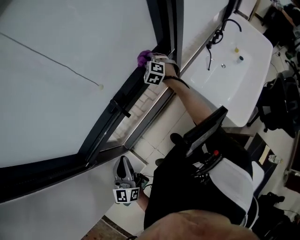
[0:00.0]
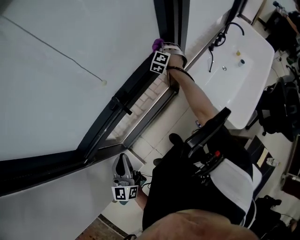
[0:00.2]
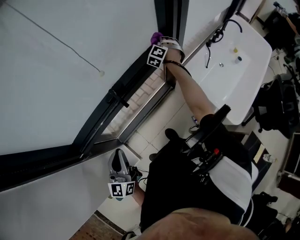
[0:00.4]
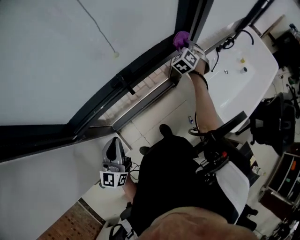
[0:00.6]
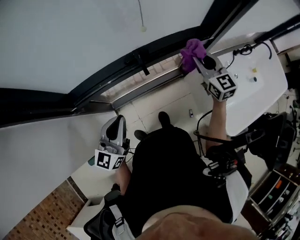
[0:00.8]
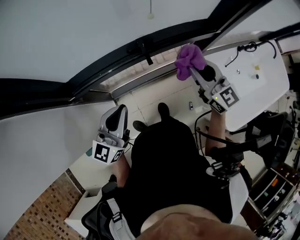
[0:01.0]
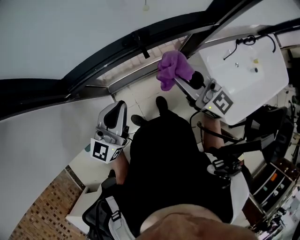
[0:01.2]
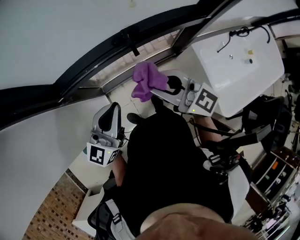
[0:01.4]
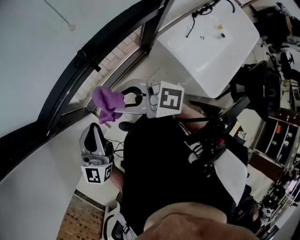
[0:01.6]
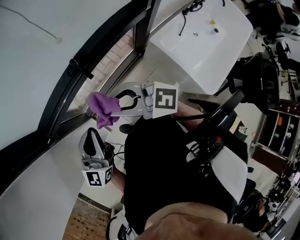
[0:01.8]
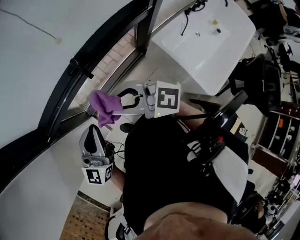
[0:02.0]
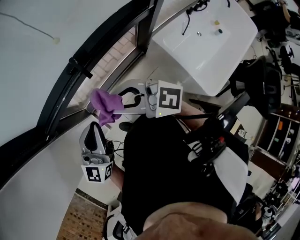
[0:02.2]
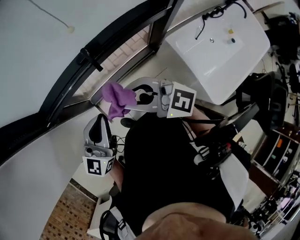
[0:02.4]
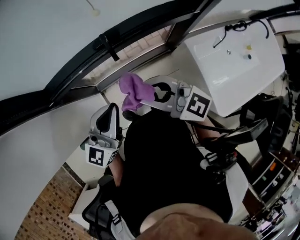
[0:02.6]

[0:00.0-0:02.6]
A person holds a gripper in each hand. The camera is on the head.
0:00.0 to 0:01.2: The right gripper shifts by about 35 cm, and tilts its fingers some 40 degrees upward.
0:01.2 to 0:02.6: The right gripper travels to the left and back again, about 10 cm each way, while the left gripper shifts approximately 10 cm to the right.

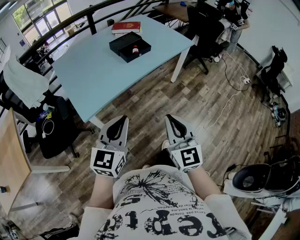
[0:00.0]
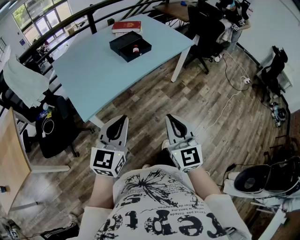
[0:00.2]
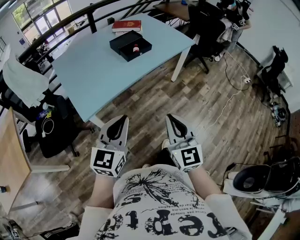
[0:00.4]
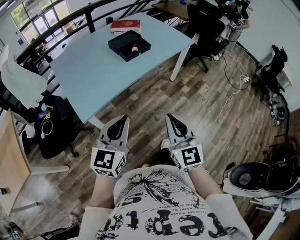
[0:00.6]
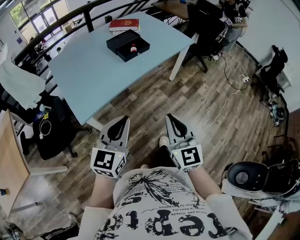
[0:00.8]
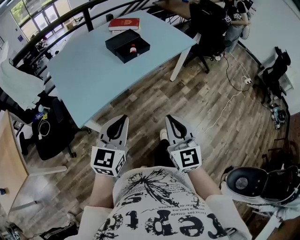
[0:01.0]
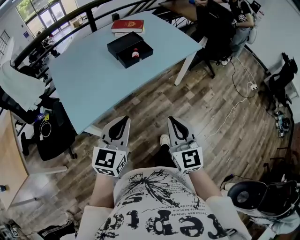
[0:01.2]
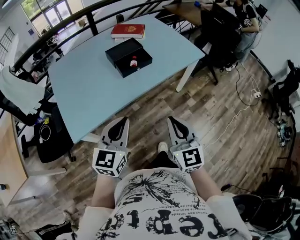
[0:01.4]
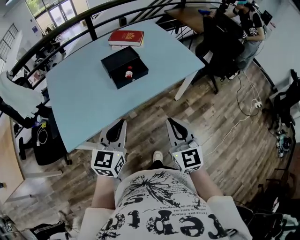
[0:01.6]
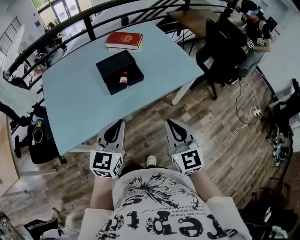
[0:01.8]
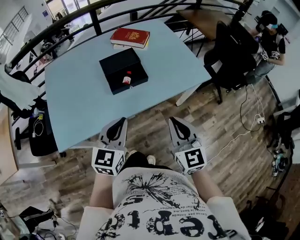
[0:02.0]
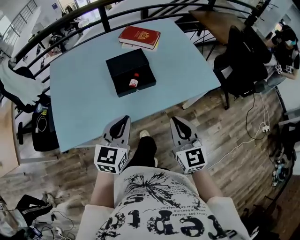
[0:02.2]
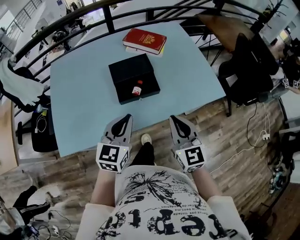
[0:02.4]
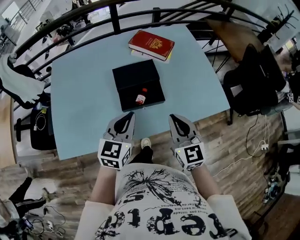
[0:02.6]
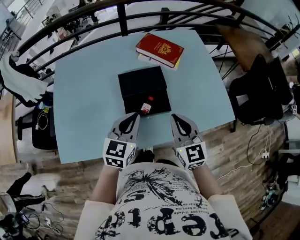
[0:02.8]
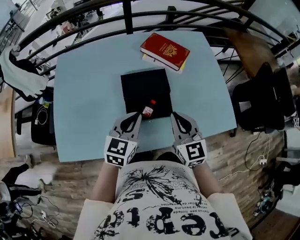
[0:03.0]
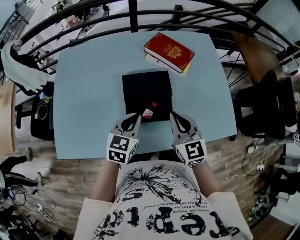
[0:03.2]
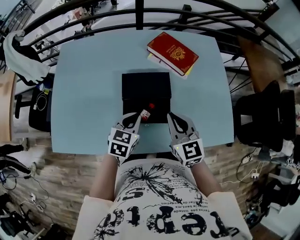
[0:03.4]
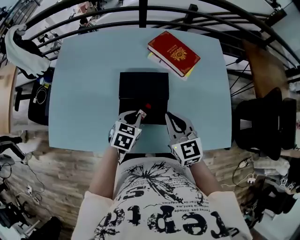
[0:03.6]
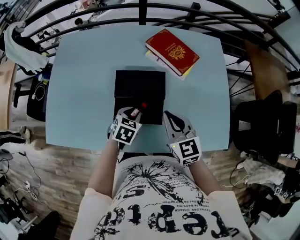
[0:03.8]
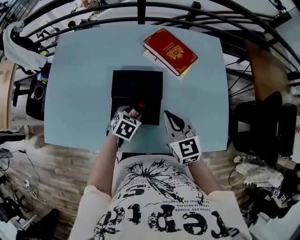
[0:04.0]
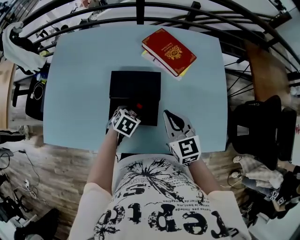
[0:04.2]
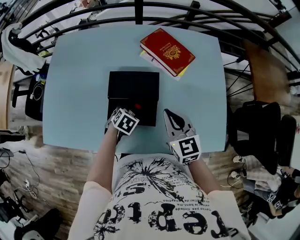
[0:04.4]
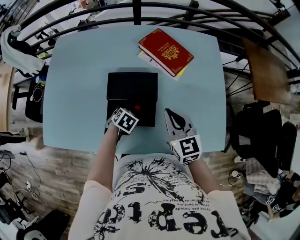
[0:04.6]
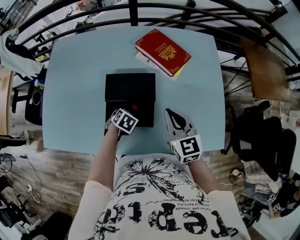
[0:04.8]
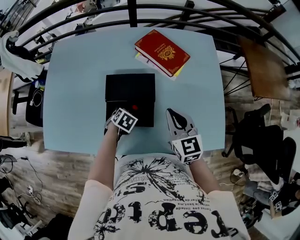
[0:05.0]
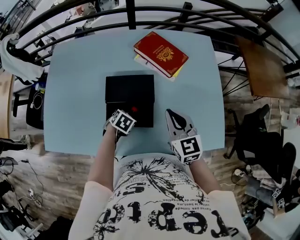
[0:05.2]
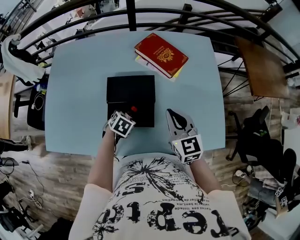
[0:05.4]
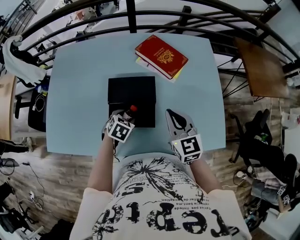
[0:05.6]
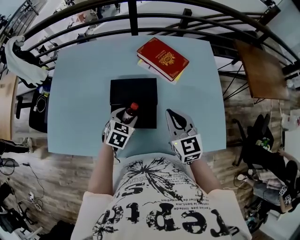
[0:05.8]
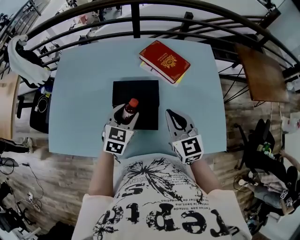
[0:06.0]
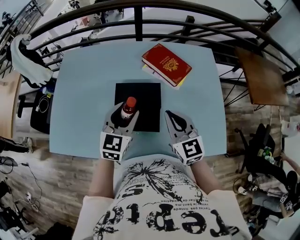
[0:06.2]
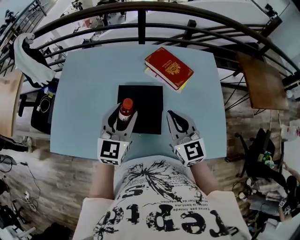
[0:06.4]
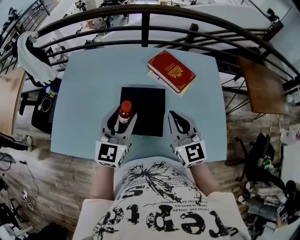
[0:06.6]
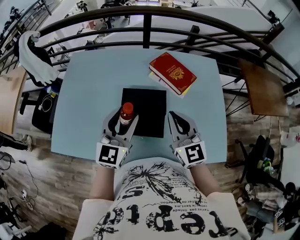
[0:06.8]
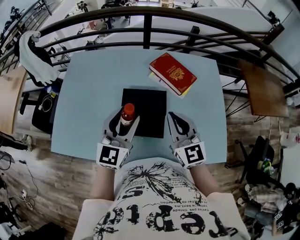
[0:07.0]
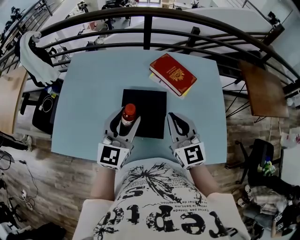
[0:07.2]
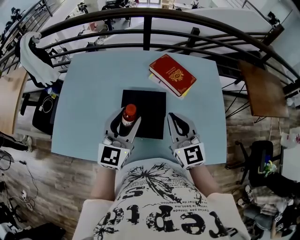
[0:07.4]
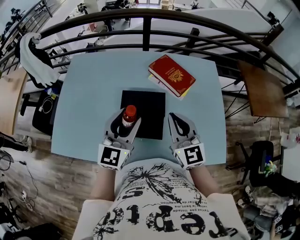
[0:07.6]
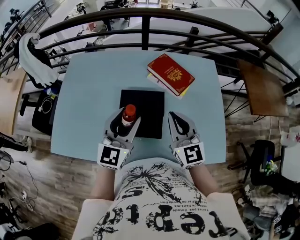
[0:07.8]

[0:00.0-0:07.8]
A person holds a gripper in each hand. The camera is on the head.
0:00.0 to 0:01.6: The right gripper heads forward and to the right, covering about 35 cm; the left gripper moves forward, about 30 cm.
0:01.6 to 0:03.2: The two grippers go about 40 cm forward. The left gripper turns by approximately 30 degrees. Meanwhile the right gripper rotates about 30 degrees.
0:03.2 to 0:04.6: The right gripper is displaced to the right and forward by about 10 cm, while the left gripper shifts some 20 cm downward, points its fingers about 40 degrees further downward, and opens up.
0:04.6 to 0:06.2: The left gripper travels upward by about 25 cm, and tips its fingers upward by roughly 50 degrees; the right gripper heads upward, covering approximately 5 cm.
0:06.2 to 0:07.8: The left gripper moves upward, approximately 5 cm, while the right gripper moves approximately 5 cm.

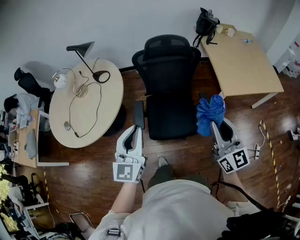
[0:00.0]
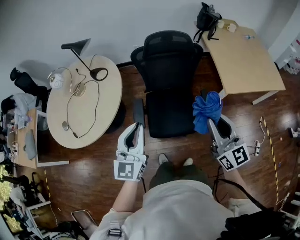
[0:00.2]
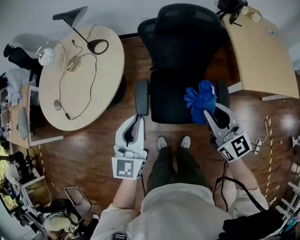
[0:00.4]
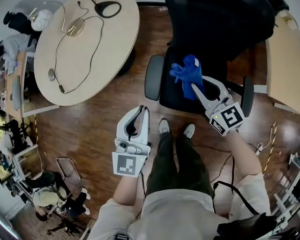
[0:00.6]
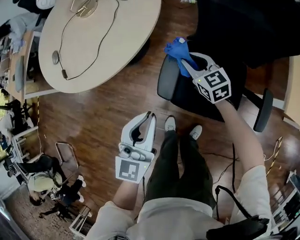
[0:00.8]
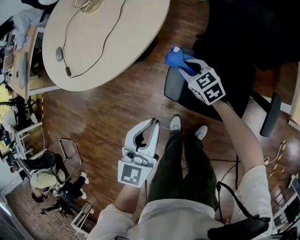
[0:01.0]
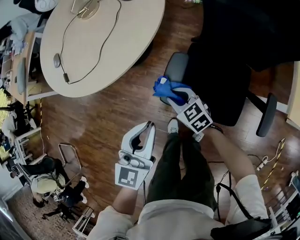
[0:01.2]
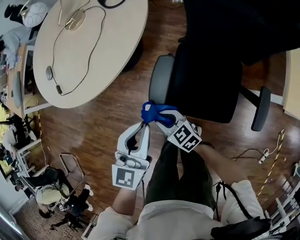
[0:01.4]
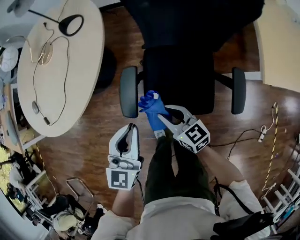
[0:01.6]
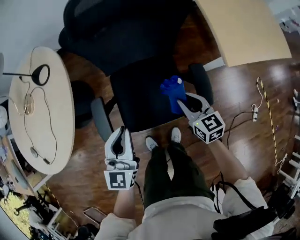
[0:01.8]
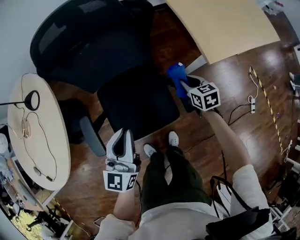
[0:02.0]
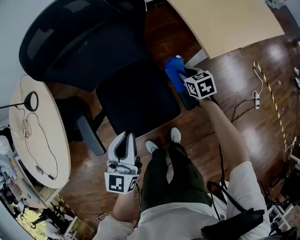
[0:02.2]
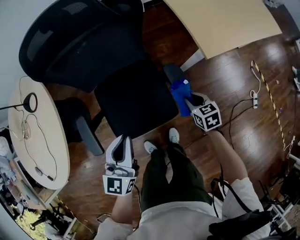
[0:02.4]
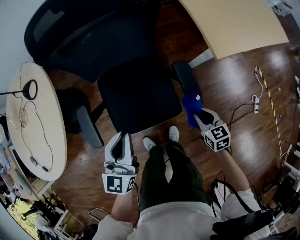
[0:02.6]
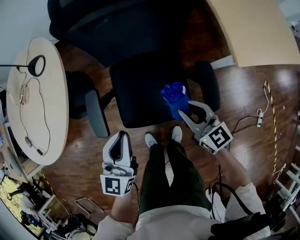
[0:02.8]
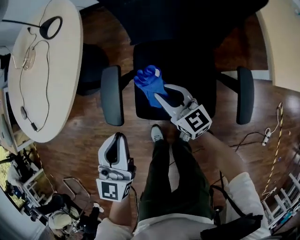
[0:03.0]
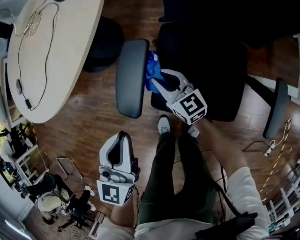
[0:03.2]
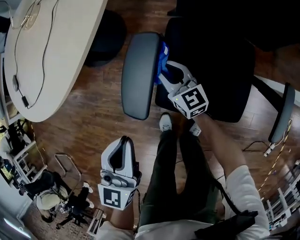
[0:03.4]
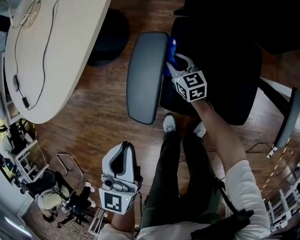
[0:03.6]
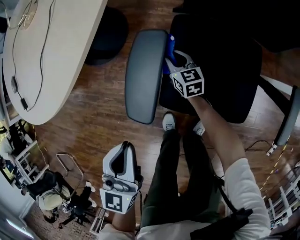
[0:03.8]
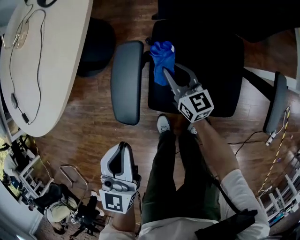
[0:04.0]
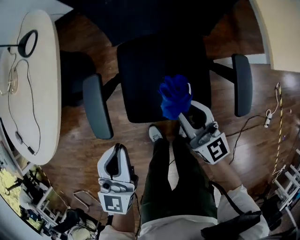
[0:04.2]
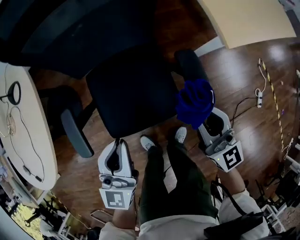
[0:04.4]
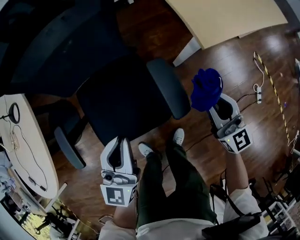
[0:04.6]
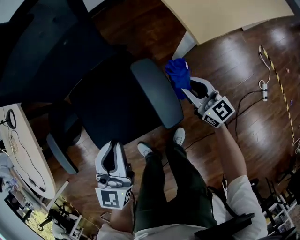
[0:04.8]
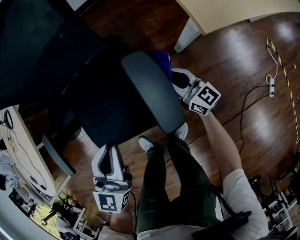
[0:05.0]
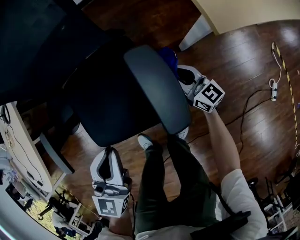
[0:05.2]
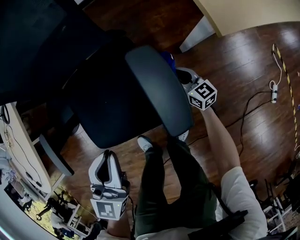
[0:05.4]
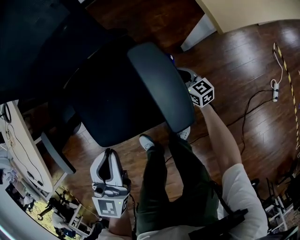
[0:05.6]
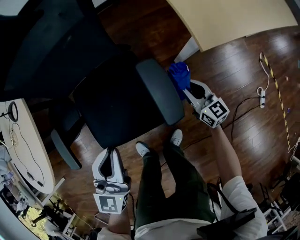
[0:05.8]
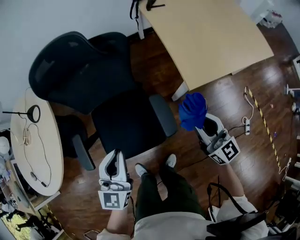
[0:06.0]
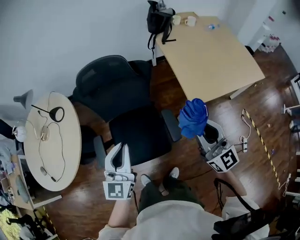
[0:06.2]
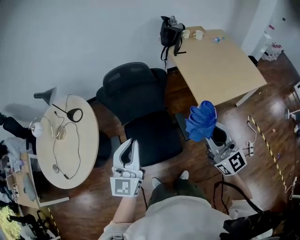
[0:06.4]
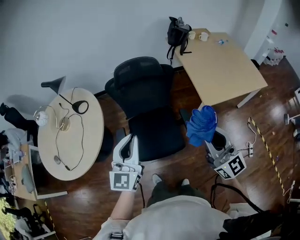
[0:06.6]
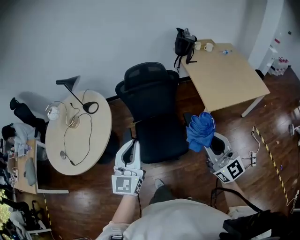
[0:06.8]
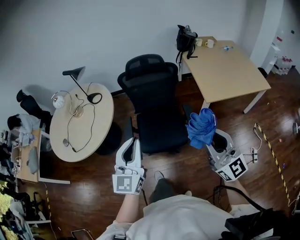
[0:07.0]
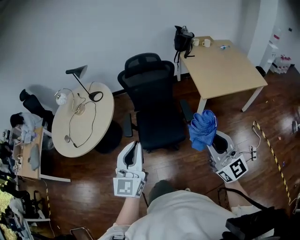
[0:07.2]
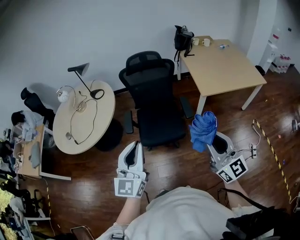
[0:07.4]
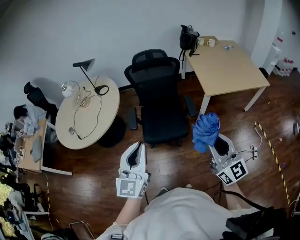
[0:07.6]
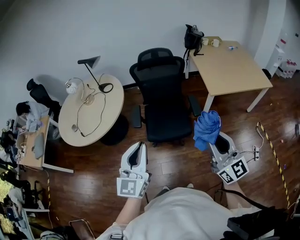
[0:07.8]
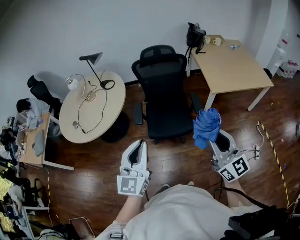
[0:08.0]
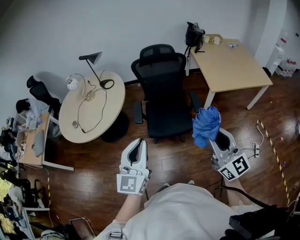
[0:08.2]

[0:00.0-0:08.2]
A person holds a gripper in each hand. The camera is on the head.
0:00.0 to 0:01.6: The left gripper goes approximately 25 cm downward, while the right gripper is displaced downward by approximately 40 cm, and changes its angle by some 50 degrees.
0:01.6 to 0:03.2: The right gripper goes up and down, roughly 20 cm each way, reversing 2 times. Meanwhile the left gripper heads downward, covering some 10 cm.
0:03.2 to 0:05.0: The right gripper goes up and down, roughly 35 cm each way, reversing 2 times, and rotates about 30 degrees. The left gripper goes upward and returns, some 5 cm each way, and changes its angle by some 30 degrees.
0:05.0 to 0:06.6: The left gripper heads upward, covering roughly 35 cm, and rotates approximately 20 degrees. Meanwhile the right gripper moves upward, approximately 60 cm, and rotates approximately 30 degrees.
0:06.6 to 0:08.2: The grippers both shift backward by about 25 cm.

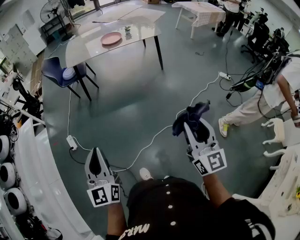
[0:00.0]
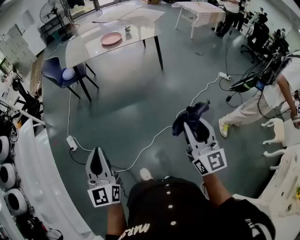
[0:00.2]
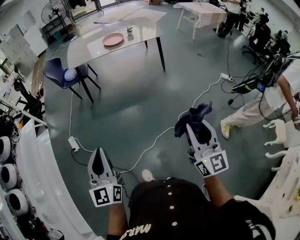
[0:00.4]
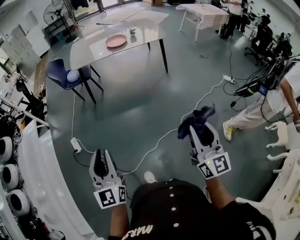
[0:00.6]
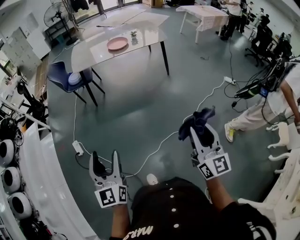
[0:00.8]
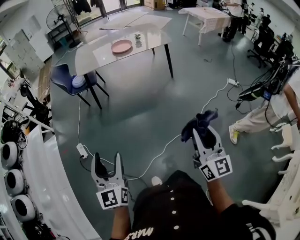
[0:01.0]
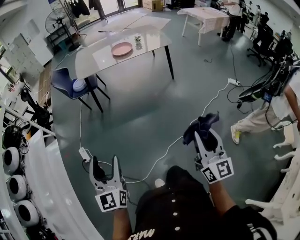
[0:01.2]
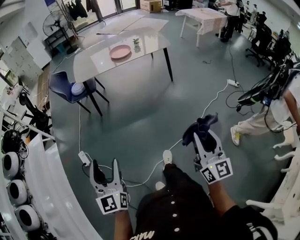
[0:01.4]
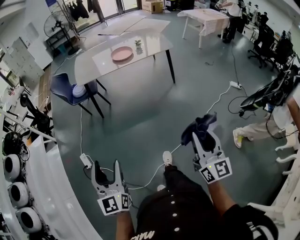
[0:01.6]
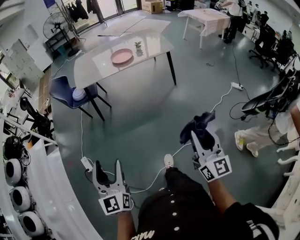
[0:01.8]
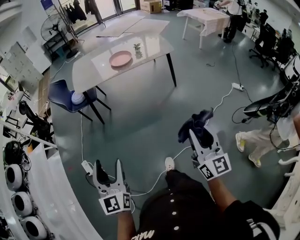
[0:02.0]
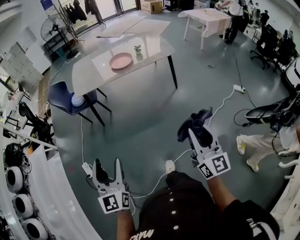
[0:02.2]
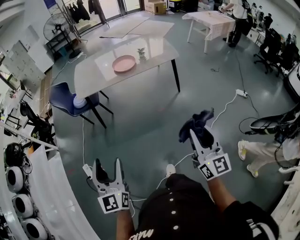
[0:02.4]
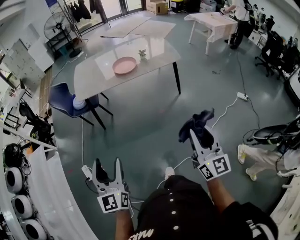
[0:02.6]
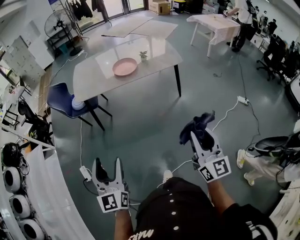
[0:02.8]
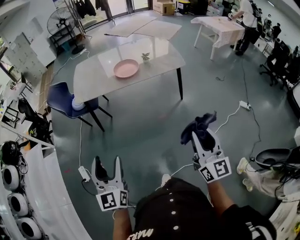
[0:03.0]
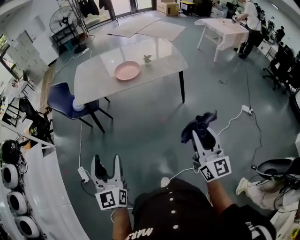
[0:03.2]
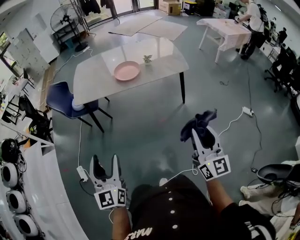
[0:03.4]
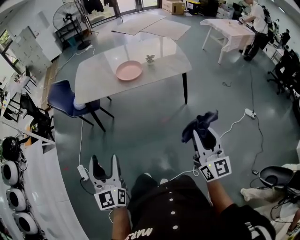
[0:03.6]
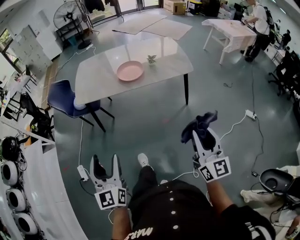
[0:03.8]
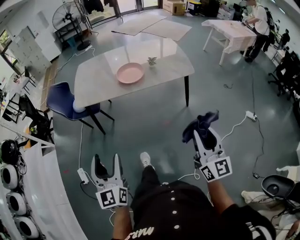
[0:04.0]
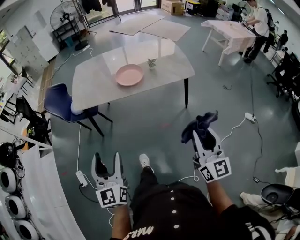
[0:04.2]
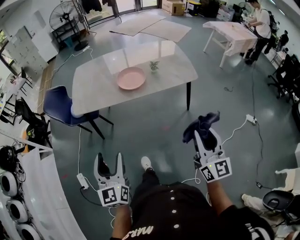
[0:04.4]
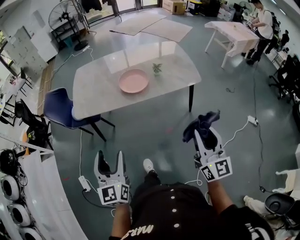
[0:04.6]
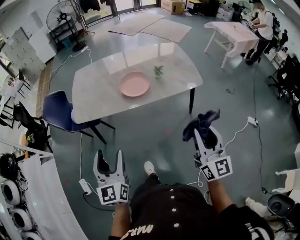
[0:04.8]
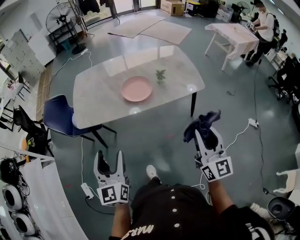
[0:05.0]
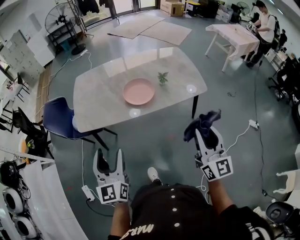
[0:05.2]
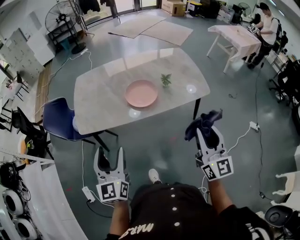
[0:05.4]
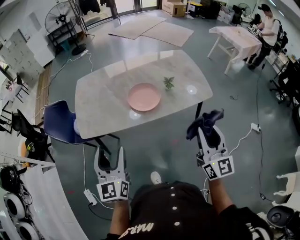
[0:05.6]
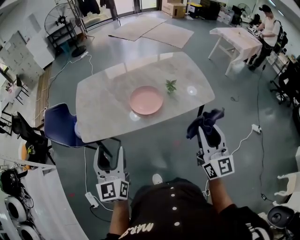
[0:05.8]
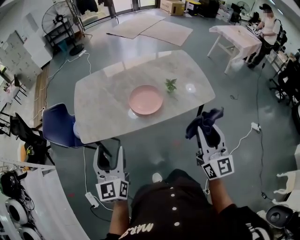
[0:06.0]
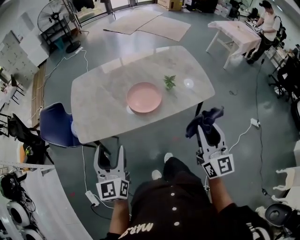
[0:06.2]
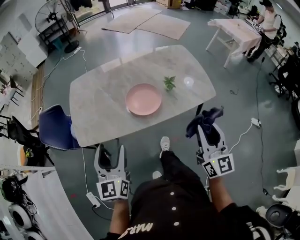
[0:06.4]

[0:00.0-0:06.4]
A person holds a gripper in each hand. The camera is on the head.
0:00.0 to 0:01.6: The grippers both shift forward and to the left by roughly 15 cm. The left gripper opens its fingers.
0:01.6 to 0:03.2: Both grippers travel together forward, approximately 35 cm.
0:03.2 to 0:04.8: Both grippers move forward, some 25 cm.
0:04.8 to 0:06.4: Both grippers move forward, about 25 cm.
